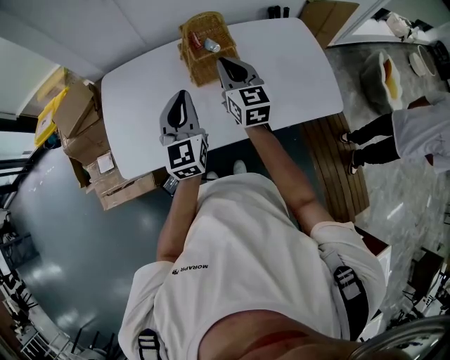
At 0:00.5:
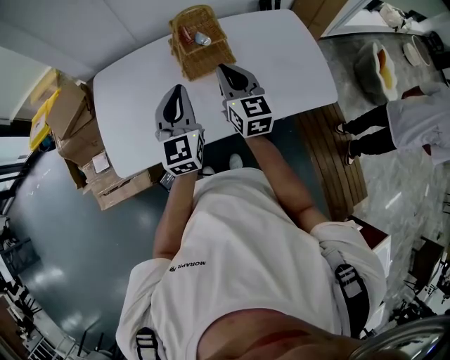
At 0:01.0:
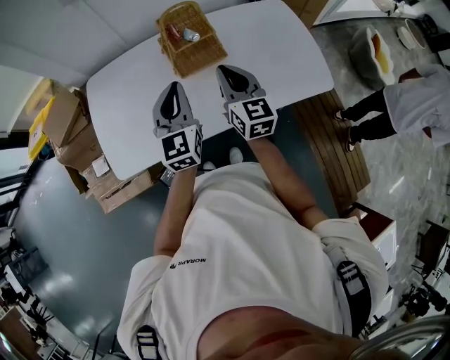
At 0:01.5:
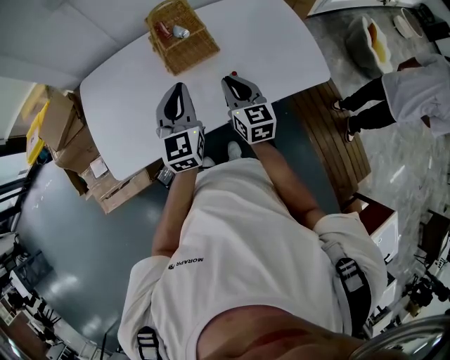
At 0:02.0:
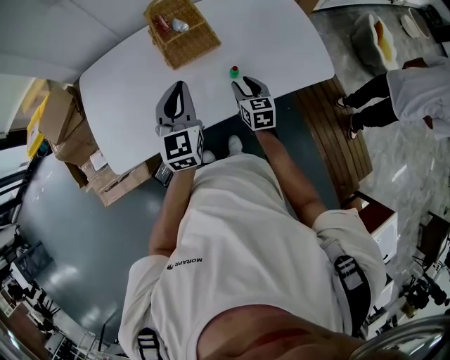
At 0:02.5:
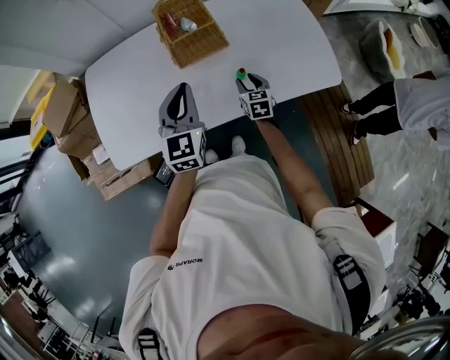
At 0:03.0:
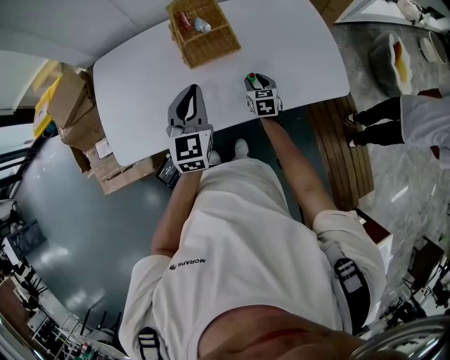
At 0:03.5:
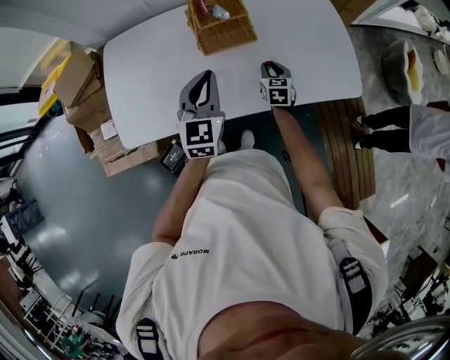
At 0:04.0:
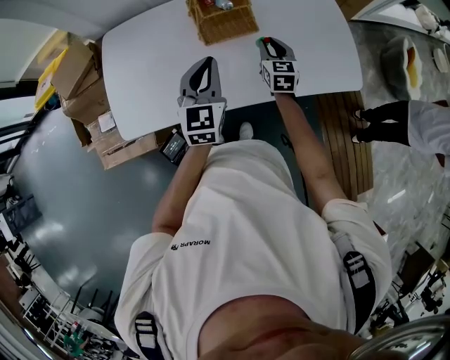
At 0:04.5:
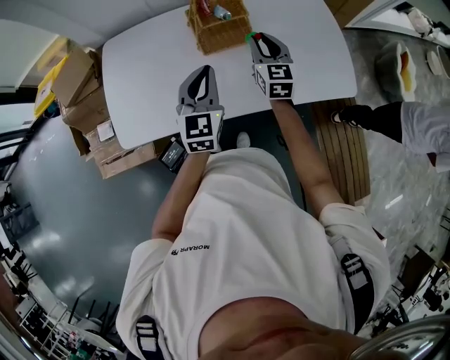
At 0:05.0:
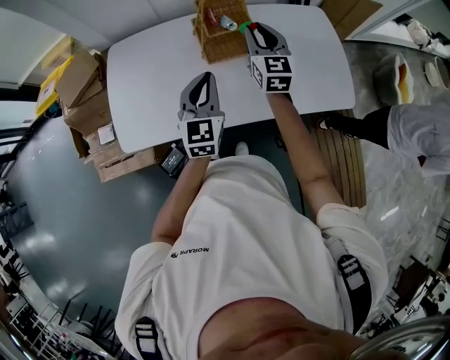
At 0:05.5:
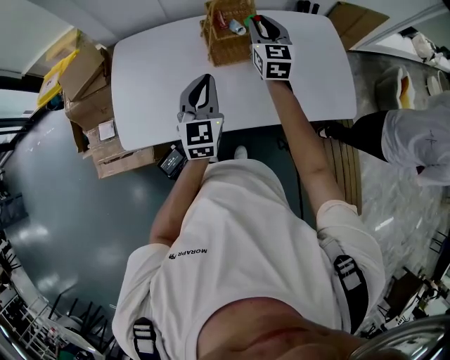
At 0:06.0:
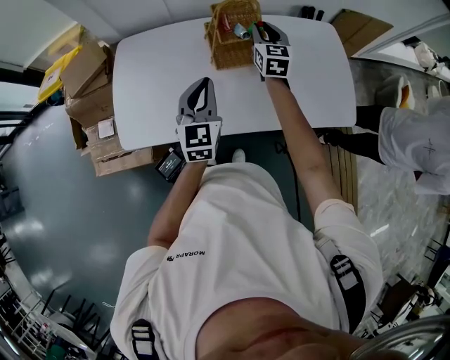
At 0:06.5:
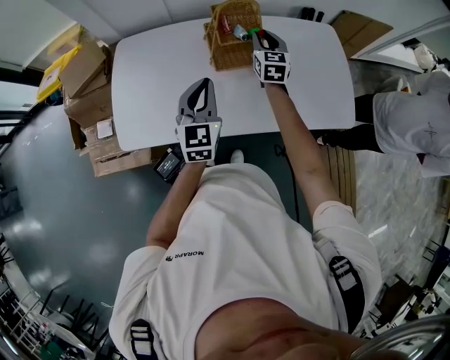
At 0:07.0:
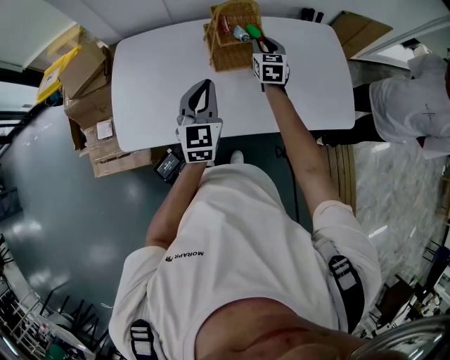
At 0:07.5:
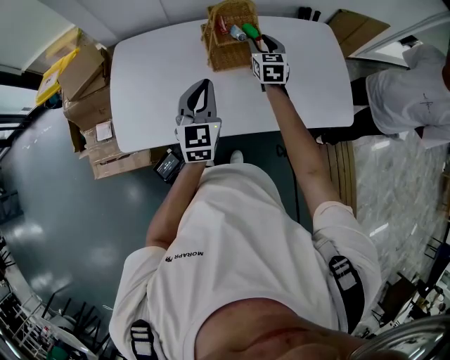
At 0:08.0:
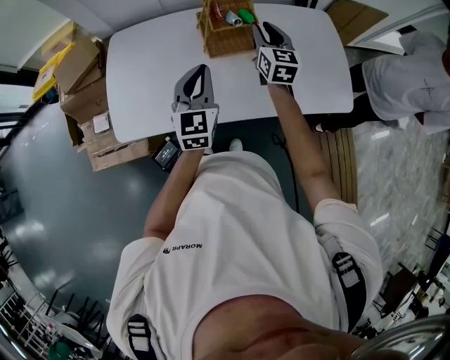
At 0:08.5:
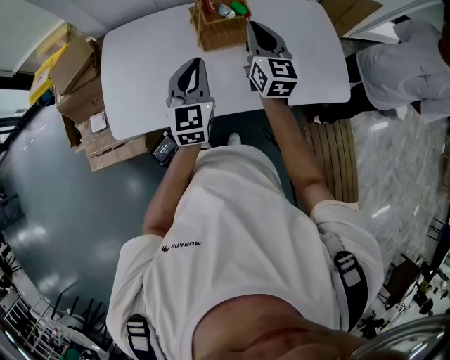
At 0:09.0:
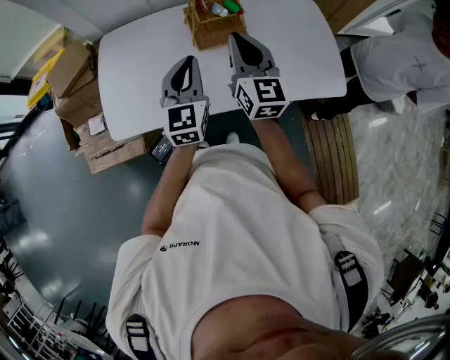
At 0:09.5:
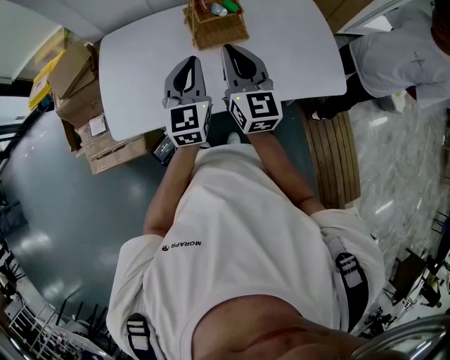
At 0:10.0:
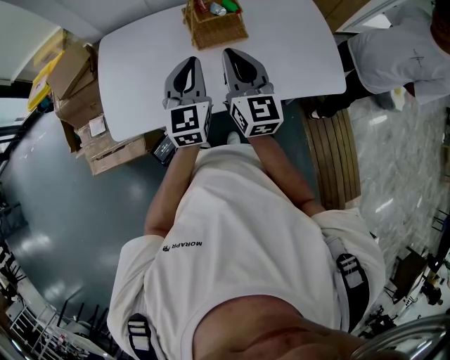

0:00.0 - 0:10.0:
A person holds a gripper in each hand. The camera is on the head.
0:00.0 - 0:02.0: The right gripper moves downward, to the right and backward, approximately 25 cm, changes its angle by some 30 degrees, and opens its fingers. The left gripper is displaced to the right by approximately 5 cm.
0:02.0 - 0:04.0: The right gripper is displaced forward by some 10 cm, and travels downward and back again, approximately 5 cm each way.
0:04.0 - 0:06.0: The left gripper changes place by approximately 5 cm; the right gripper travels forward, upward and to the left by roughly 20 cm.
0:06.0 - 0:08.0: The right gripper shifts about 5 cm backward, and moves some 5 cm downward and comes back.
0:08.0 - 0:10.0: The right gripper moves backward, to the left and upward, some 20 cm, and closes its fingers.

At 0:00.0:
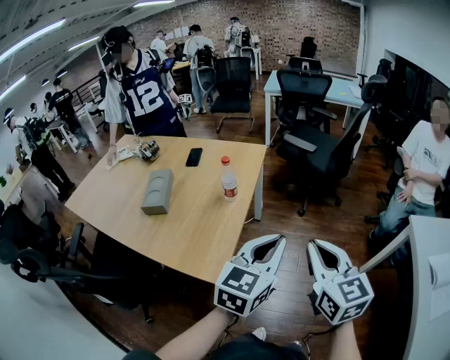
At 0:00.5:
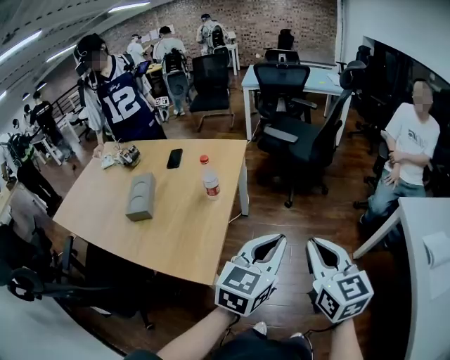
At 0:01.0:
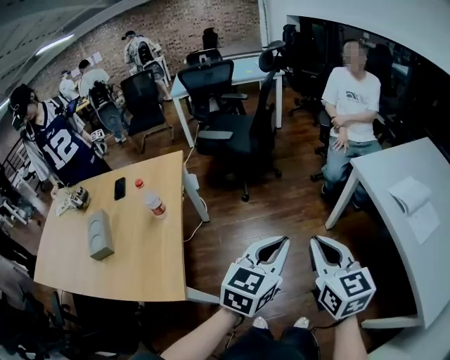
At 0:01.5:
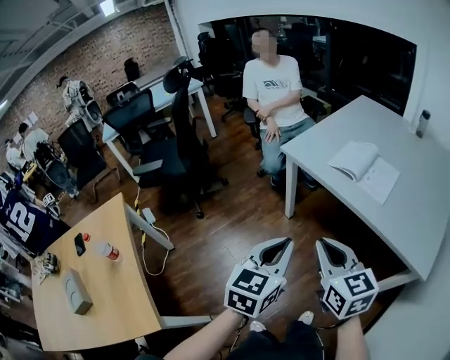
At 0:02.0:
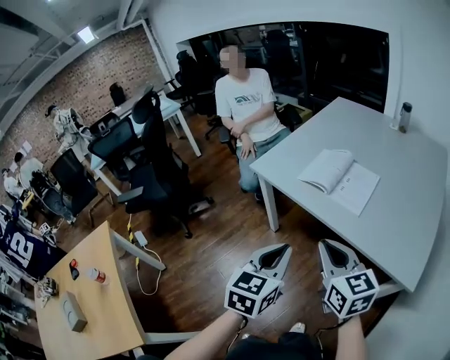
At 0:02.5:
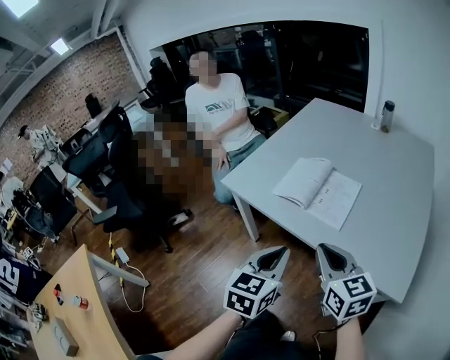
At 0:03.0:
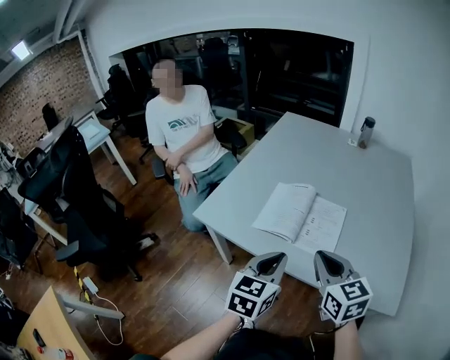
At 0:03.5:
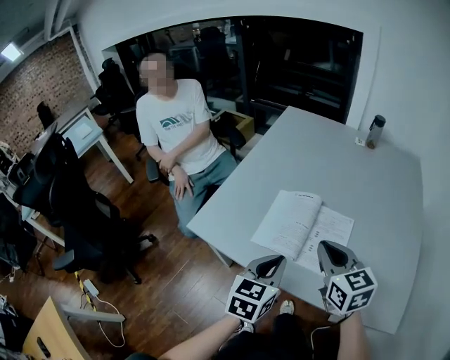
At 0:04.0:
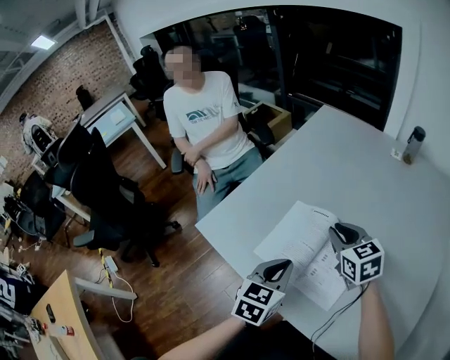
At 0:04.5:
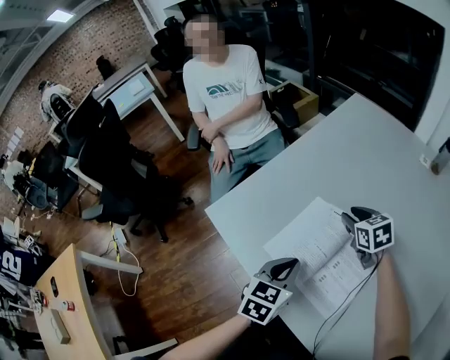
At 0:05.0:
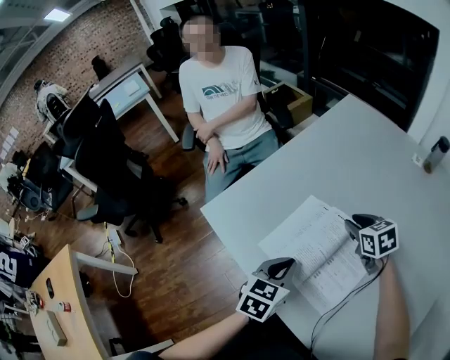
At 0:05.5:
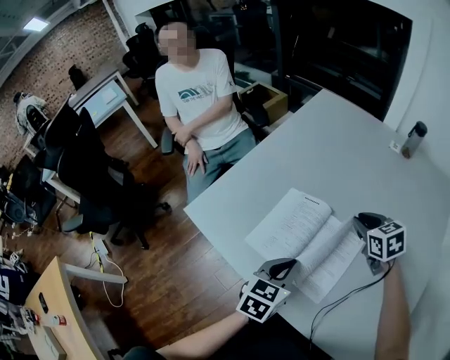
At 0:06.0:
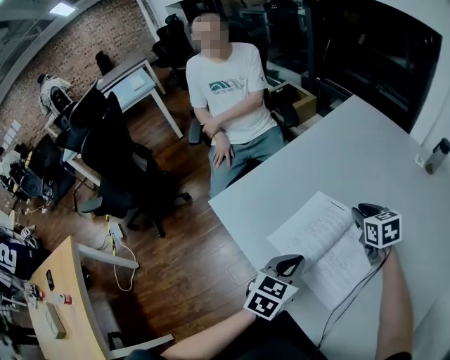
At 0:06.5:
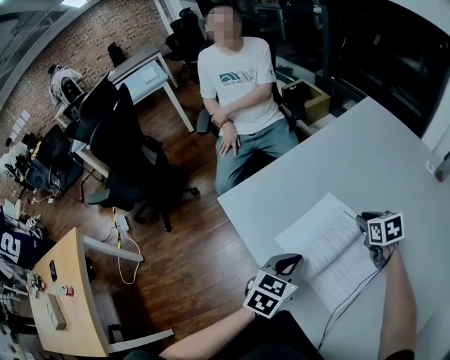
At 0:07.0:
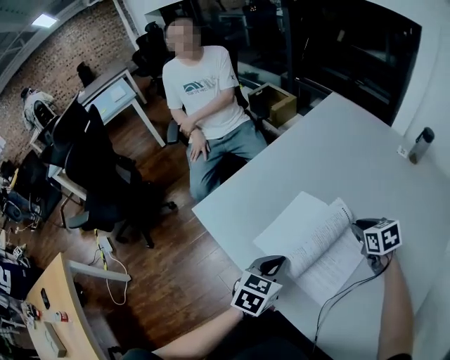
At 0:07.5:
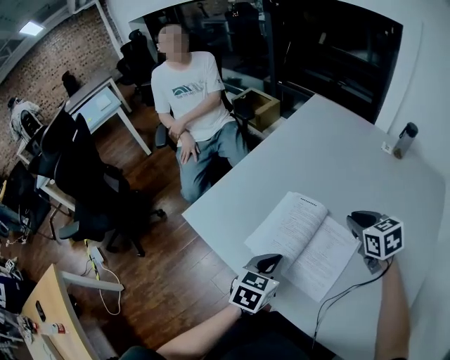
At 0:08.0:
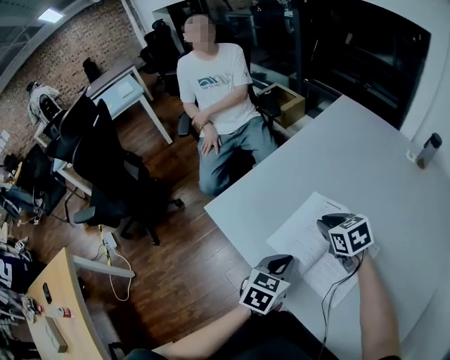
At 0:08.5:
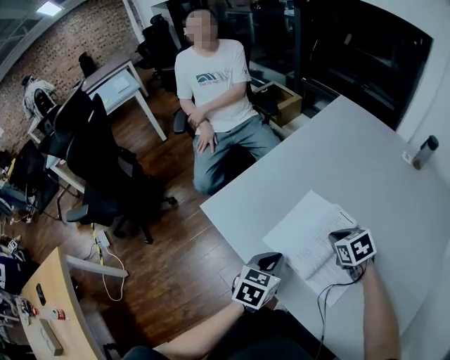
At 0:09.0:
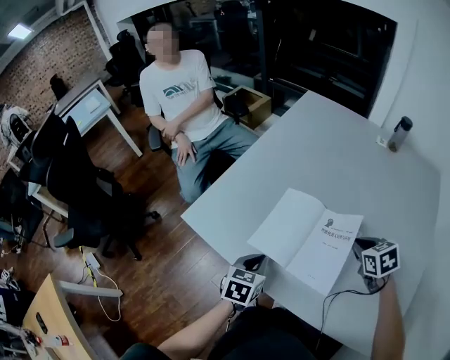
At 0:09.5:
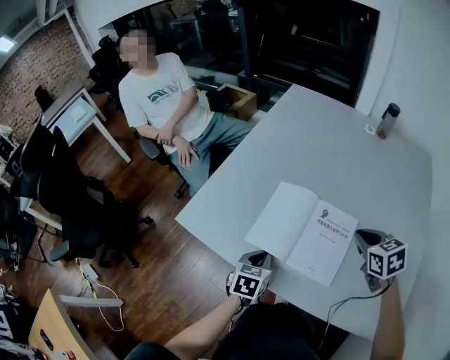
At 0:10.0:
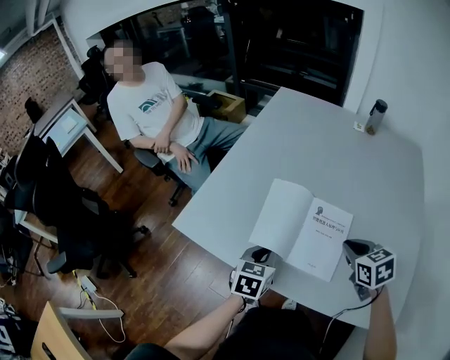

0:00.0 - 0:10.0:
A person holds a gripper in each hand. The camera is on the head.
0:00.0 - 0:02.0: Both grippers are carried roughly 50 cm. The right gripper changes its angle by some 60 degrees. The left gripper changes its angle by some 50 degrees.
0:02.0 - 0:04.0: The grippers both shift forward by some 40 cm.
0:04.0 - 0:06.0: The right gripper moves forward and downward, about 10 cm, and goes to the right and returns, roughly 10 cm each way.
0:06.0 - 0:08.0: The right gripper heads to the left and backward, covering about 10 cm.
0:08.0 - 0:10.0: The right gripper heads to the right and backward, covering roughly 20 cm, and swivels approximately 30 degrees.

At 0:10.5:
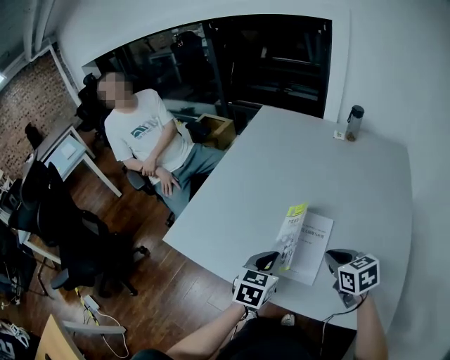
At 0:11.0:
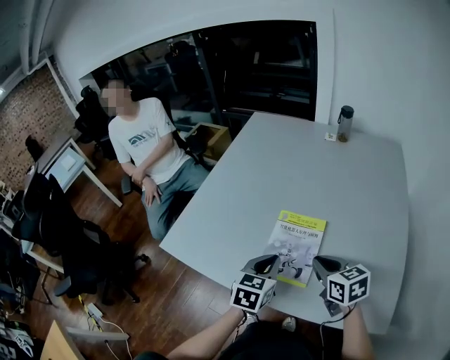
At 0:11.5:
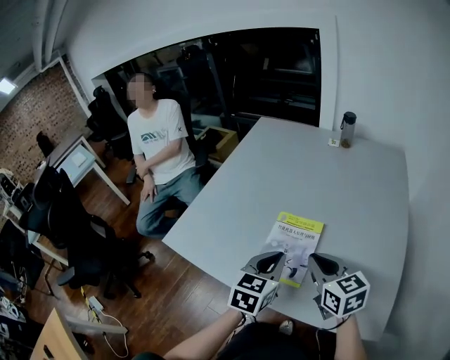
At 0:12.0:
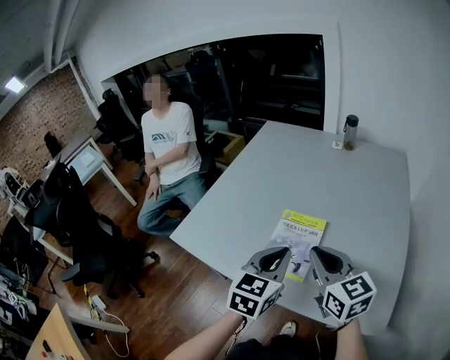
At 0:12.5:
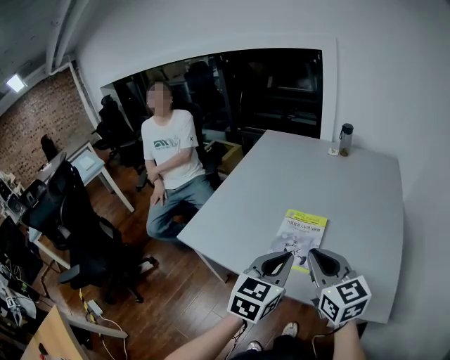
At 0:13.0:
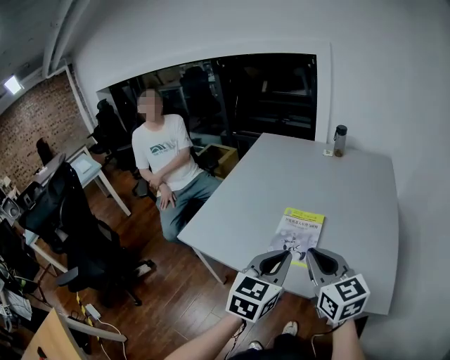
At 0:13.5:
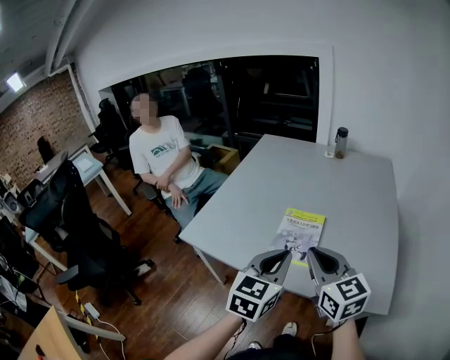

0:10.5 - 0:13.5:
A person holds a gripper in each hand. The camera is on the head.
0:10.5 - 0:12.0: The left gripper heads upward, to the right and backward, covering some 15 cm. The right gripper is displaced upward and backward by some 15 cm, and rotates some 30 degrees.
0:12.0 - 0:13.5: The two grippers go some 10 cm backward.

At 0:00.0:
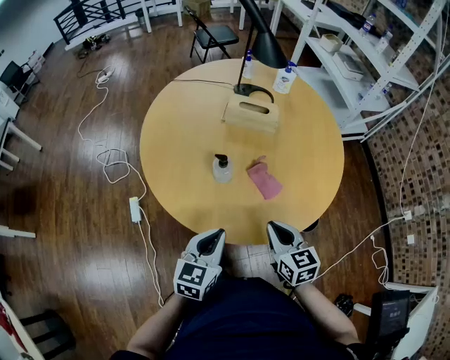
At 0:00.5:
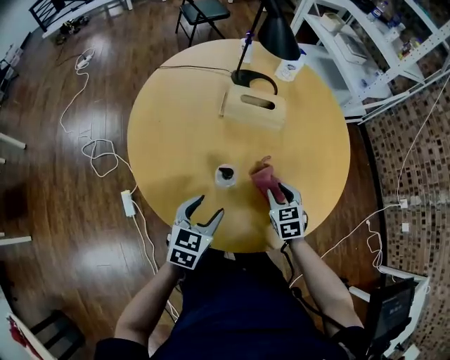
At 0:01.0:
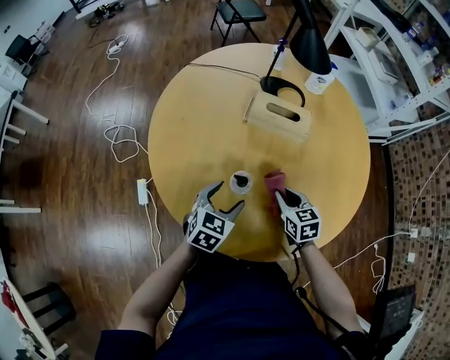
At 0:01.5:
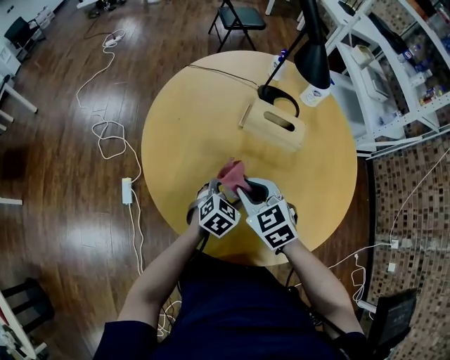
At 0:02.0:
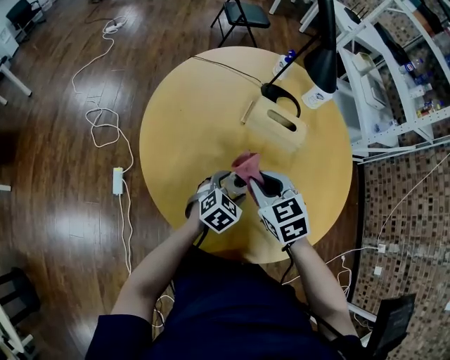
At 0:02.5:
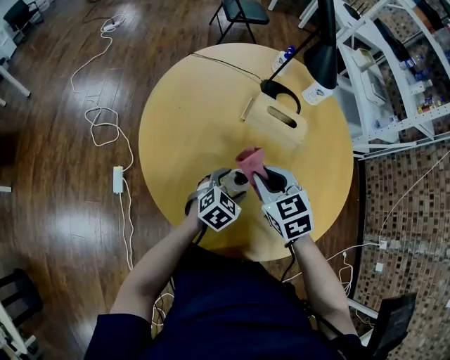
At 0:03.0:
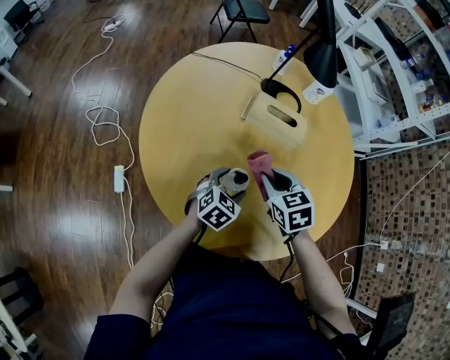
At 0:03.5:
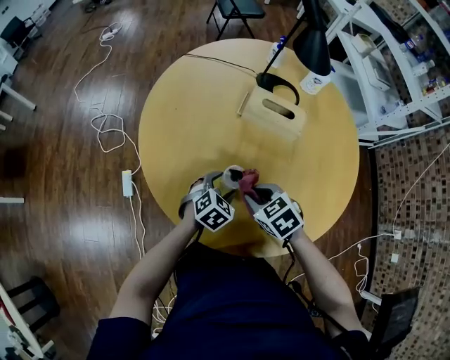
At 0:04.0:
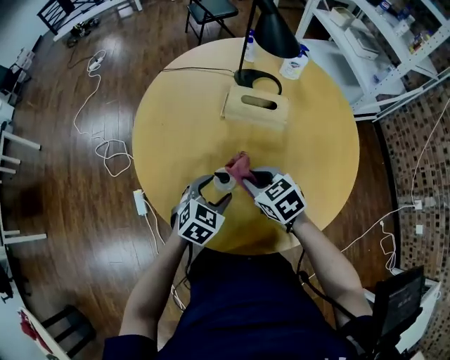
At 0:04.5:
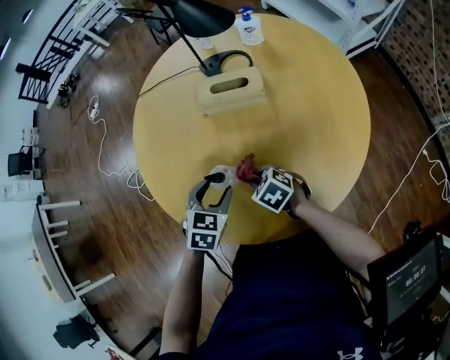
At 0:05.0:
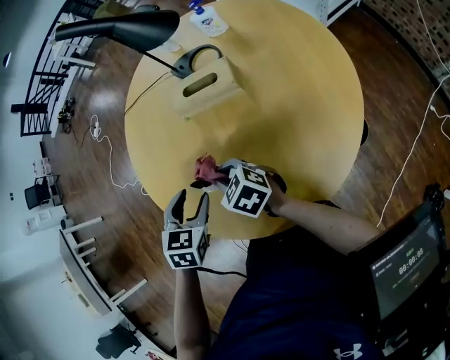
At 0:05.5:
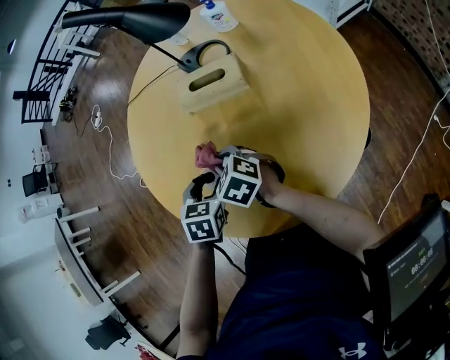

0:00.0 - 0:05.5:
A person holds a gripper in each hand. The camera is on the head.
0:00.0 - 0:02.0: The right gripper travels forward and to the left by about 25 cm, and swivels approximately 30 degrees. The left gripper goes about 25 cm forward and downward, rotates about 30 degrees, and opens its fingers.
0:02.0 - 0:03.5: The right gripper shifts some 10 cm downward and backward.
0:03.5 - 0:05.5: The right gripper travels forward by approximately 5 cm, and moves about 5 cm downward and comes back, while the left gripper is displaced upward by roughly 10 cm.
